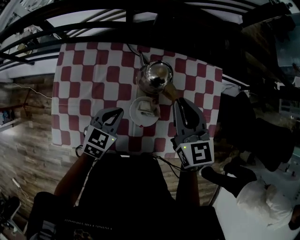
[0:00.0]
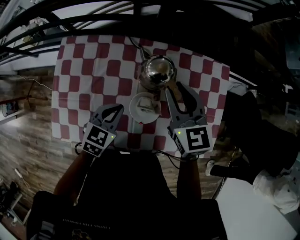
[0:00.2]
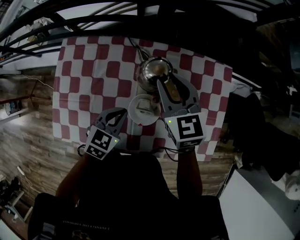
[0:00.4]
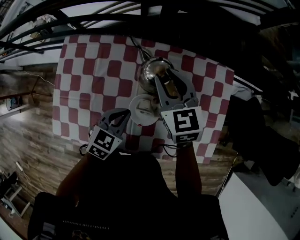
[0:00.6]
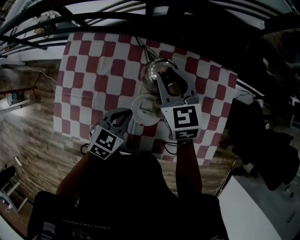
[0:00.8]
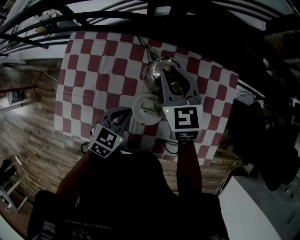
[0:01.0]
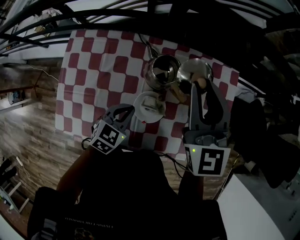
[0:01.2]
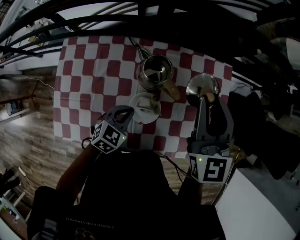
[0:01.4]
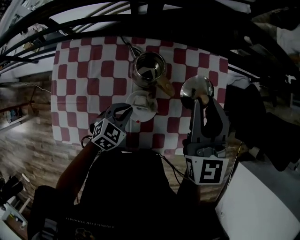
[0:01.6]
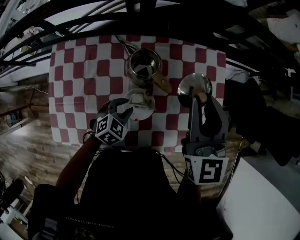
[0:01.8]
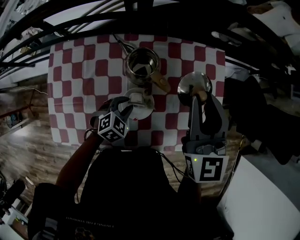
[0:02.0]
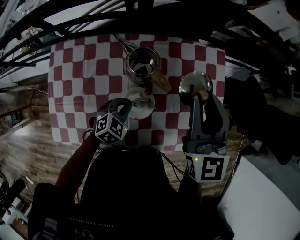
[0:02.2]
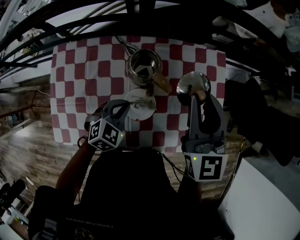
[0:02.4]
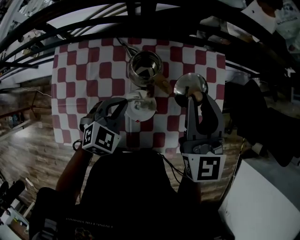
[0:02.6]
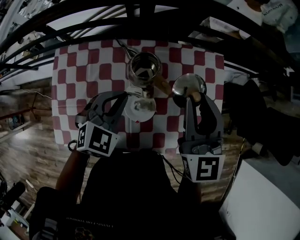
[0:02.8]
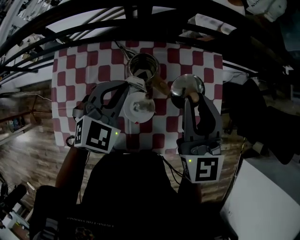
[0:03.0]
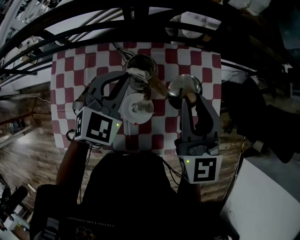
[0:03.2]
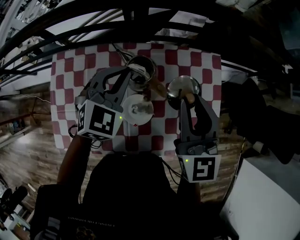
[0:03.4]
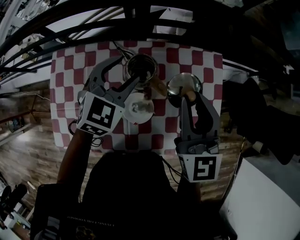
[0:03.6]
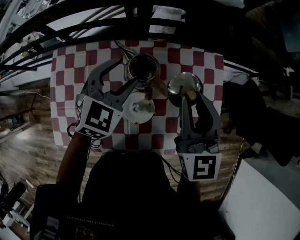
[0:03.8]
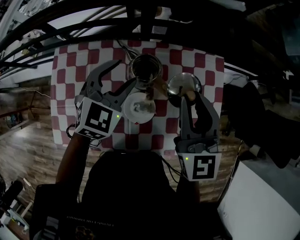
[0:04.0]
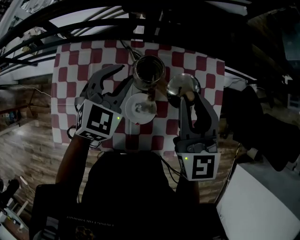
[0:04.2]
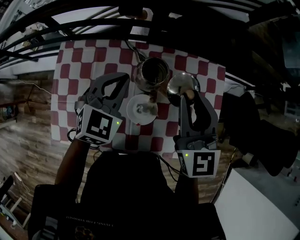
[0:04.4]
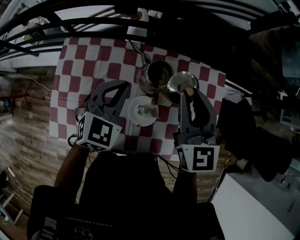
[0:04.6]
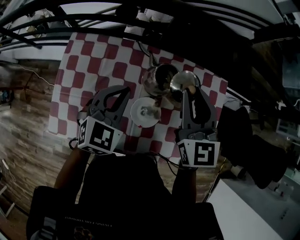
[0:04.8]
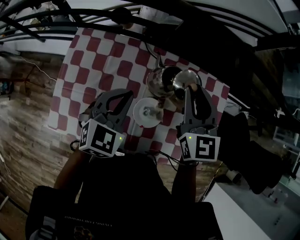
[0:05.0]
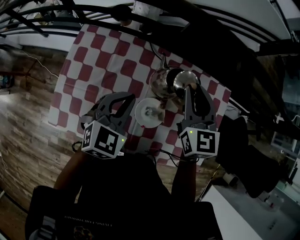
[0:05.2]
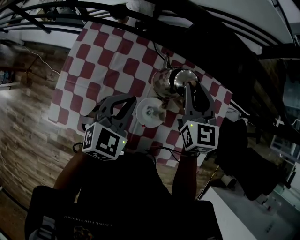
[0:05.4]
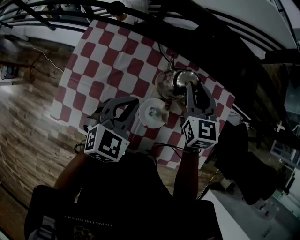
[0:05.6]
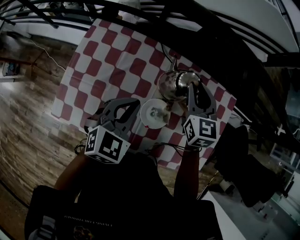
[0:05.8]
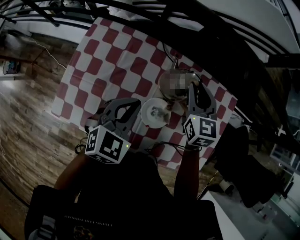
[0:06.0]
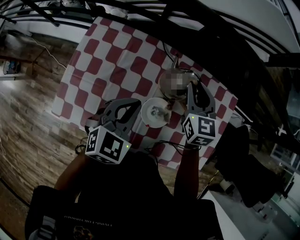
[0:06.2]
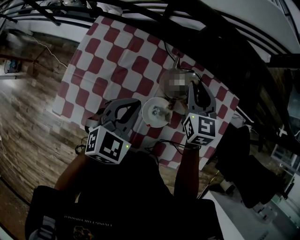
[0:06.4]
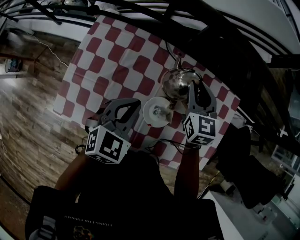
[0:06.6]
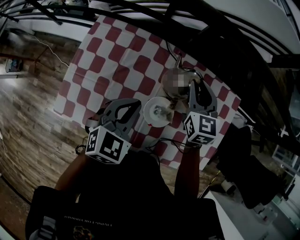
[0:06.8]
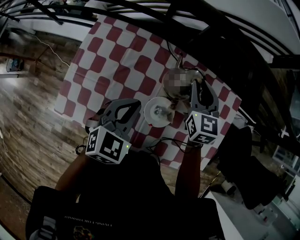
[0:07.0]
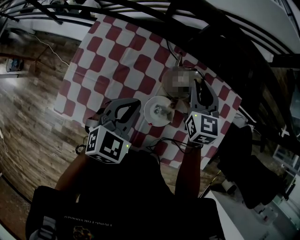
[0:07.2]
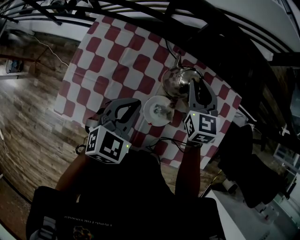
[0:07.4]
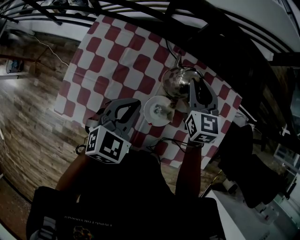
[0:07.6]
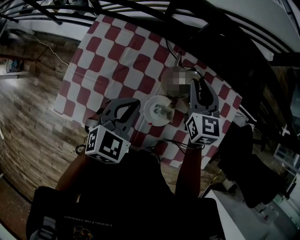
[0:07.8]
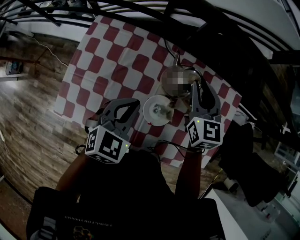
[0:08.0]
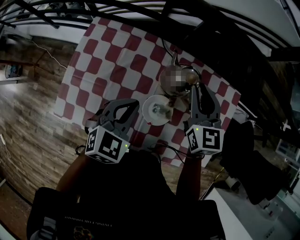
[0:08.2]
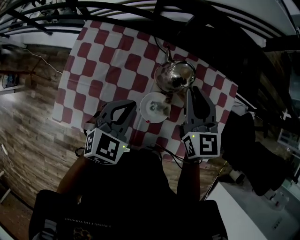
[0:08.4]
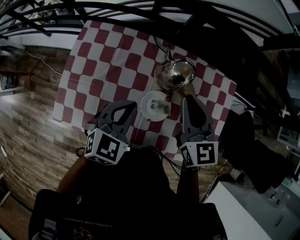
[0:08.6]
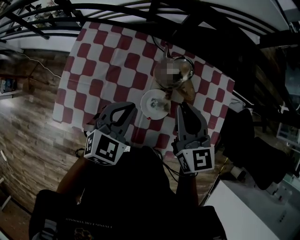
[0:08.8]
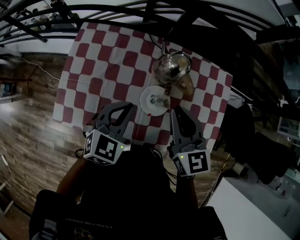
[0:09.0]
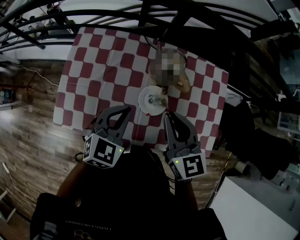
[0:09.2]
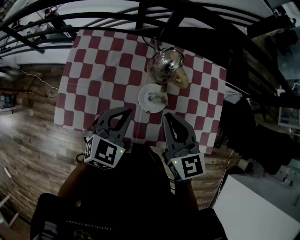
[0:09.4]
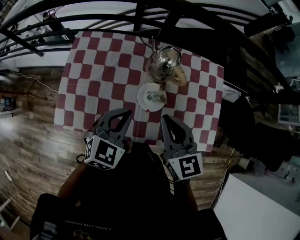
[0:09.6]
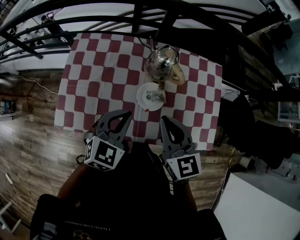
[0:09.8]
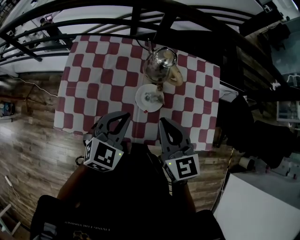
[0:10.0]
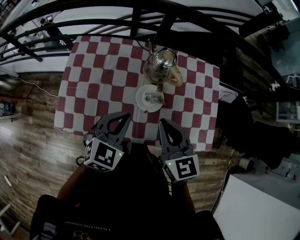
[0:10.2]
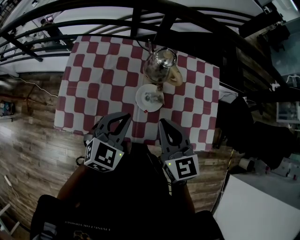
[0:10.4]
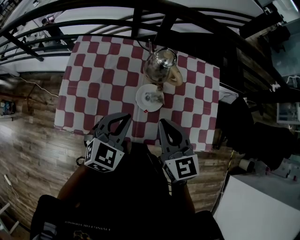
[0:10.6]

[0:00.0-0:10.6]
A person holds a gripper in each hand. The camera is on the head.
0:00.0 to 0:01.6: The right gripper shifts roughly 10 cm to the right and upward; the left gripper is displaced to the right and downward by about 10 cm, and turns by about 20 degrees.
0:01.6 to 0:03.0: The left gripper heads upward and forward, covering about 20 cm, rotates roughly 20 degrees, and opens, then closes once more.
0:03.0 to 0:04.6: Both grippers move to the left, approximately 5 cm. The left gripper opens, then closes once more.
0:04.6 to 0:06.0: The right gripper goes approximately 15 cm downward and forward; the left gripper is displaced backward by some 5 cm.
0:06.0 to 0:07.6: There are only small adjustments of the grippers.
0:07.6 to 0:09.0: The left gripper is displaced backward by about 5 cm; the right gripper shifts approximately 20 cm backward.
0:09.0 to 0:10.6: Both grippers travel together backward, about 10 cm.

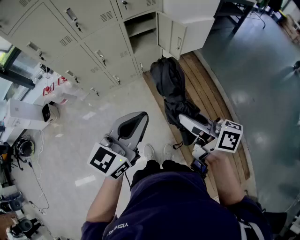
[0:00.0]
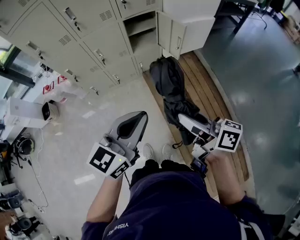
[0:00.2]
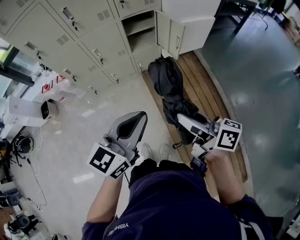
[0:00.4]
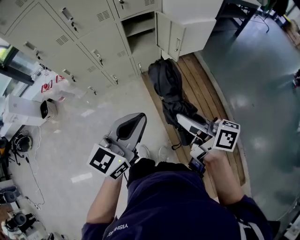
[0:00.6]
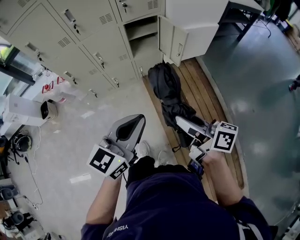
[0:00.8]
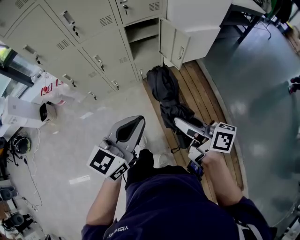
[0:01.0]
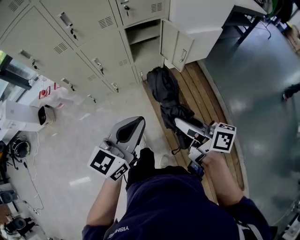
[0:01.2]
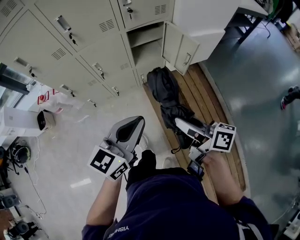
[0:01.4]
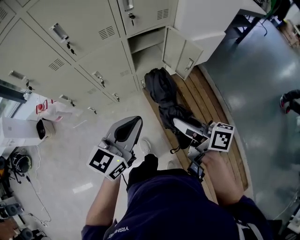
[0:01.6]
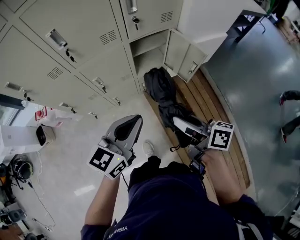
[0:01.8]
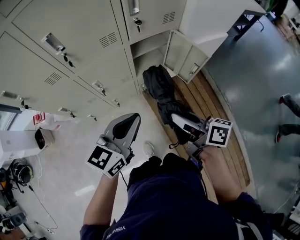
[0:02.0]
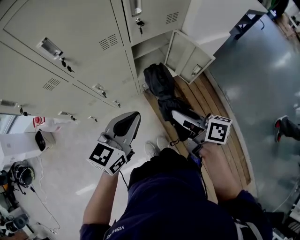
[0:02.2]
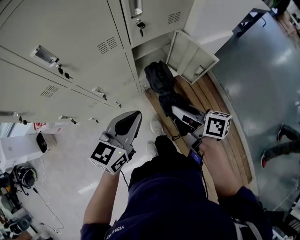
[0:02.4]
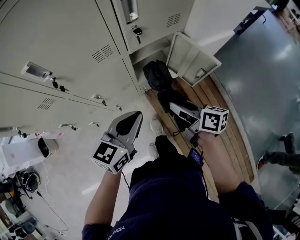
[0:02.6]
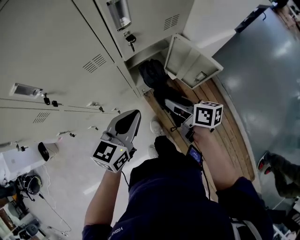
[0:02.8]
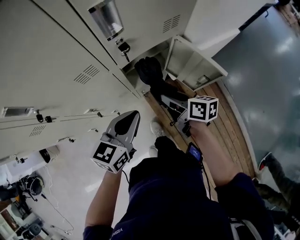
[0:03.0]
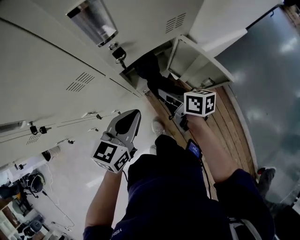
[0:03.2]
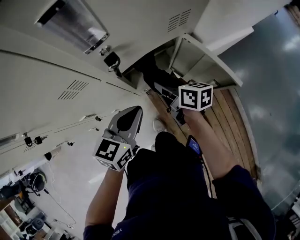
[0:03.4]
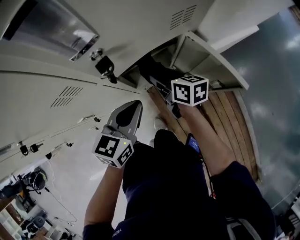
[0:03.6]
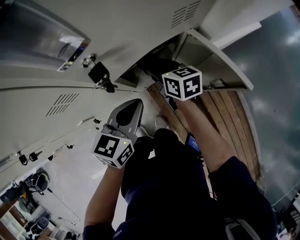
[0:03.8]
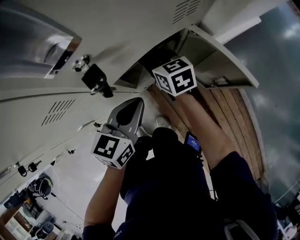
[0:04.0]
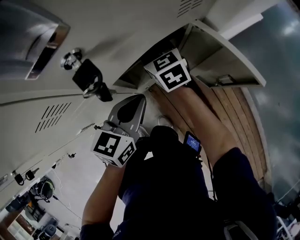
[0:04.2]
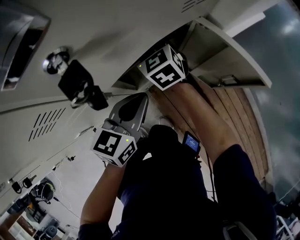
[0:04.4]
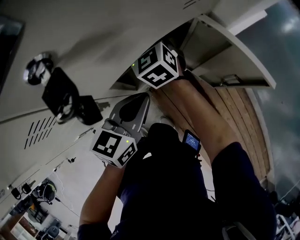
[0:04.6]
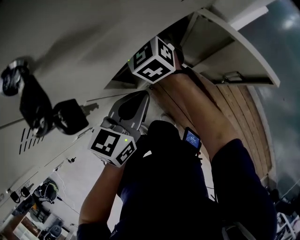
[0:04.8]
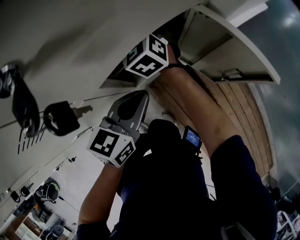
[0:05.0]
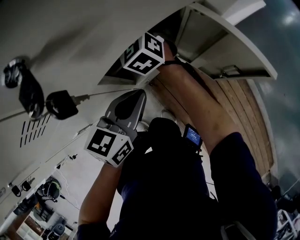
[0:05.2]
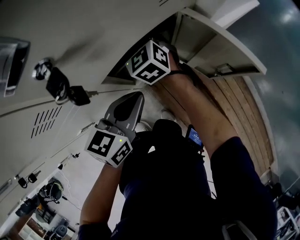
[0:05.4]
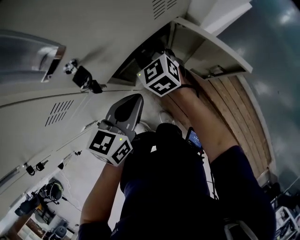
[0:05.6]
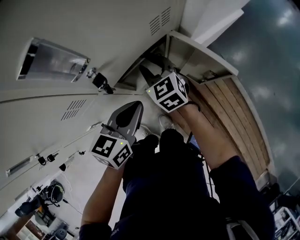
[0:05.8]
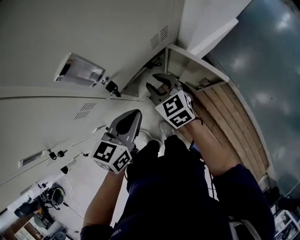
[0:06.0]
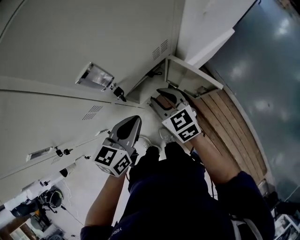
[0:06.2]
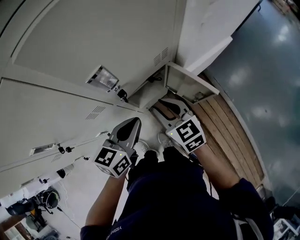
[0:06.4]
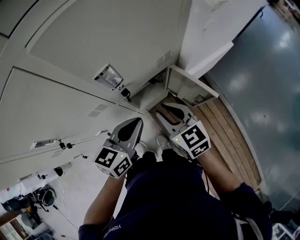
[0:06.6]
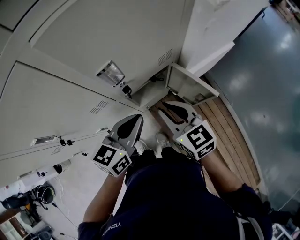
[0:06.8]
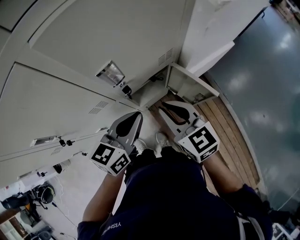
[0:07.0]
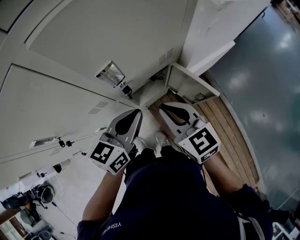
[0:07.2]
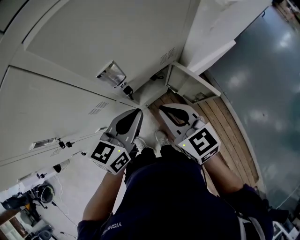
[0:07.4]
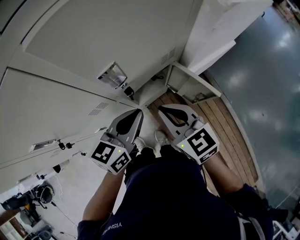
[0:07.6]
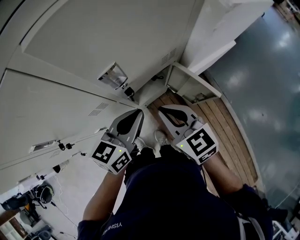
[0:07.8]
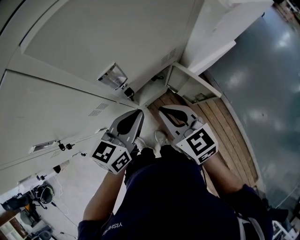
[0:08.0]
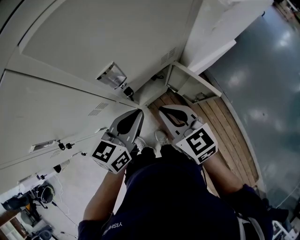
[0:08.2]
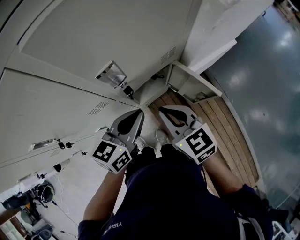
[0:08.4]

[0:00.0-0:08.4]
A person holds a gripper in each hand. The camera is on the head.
0:00.0 to 0:01.4: The two grippers go some 15 cm forward.
0:01.4 to 0:02.8: The right gripper is displaced forward and downward by some 35 cm. Meanwhile the left gripper shifts some 30 cm forward.
0:02.8 to 0:04.2: Both grippers travel together forward and downward, some 25 cm. The right gripper rolls counterclockwise, seen from behind, by about 50 degrees.
0:05.6 to 0:07.0: The right gripper goes approximately 30 cm upward and backward, and rotates about 20 degrees; the left gripper shifts some 20 cm upward.
0:07.0 to 0:08.4: There are only small adjustments of the grippers.

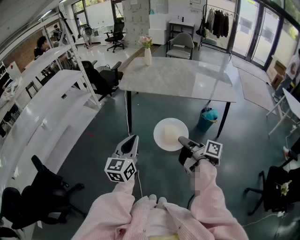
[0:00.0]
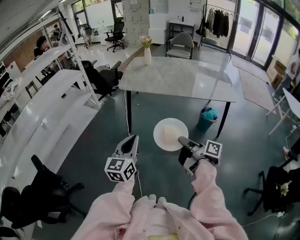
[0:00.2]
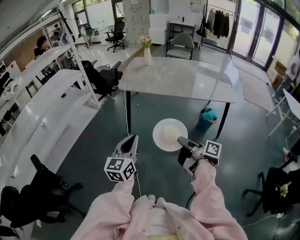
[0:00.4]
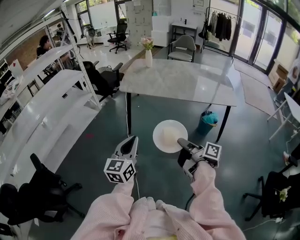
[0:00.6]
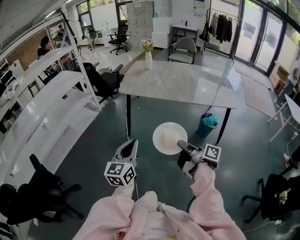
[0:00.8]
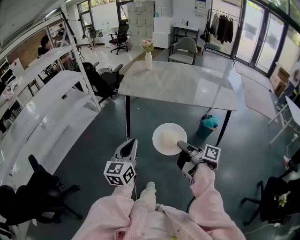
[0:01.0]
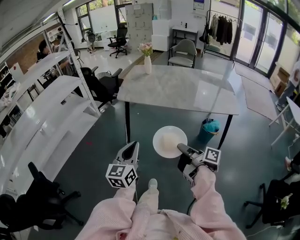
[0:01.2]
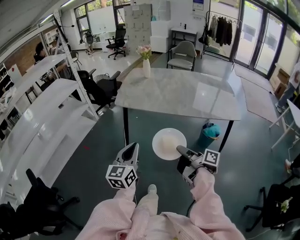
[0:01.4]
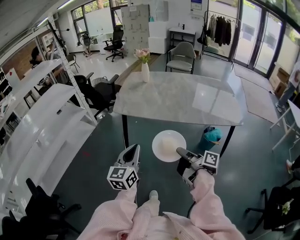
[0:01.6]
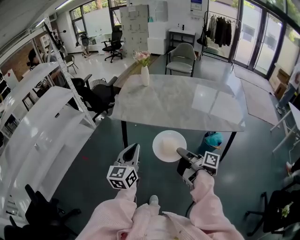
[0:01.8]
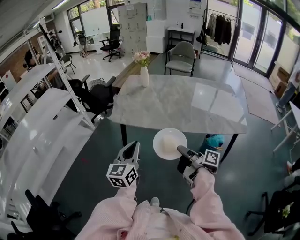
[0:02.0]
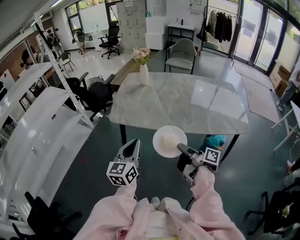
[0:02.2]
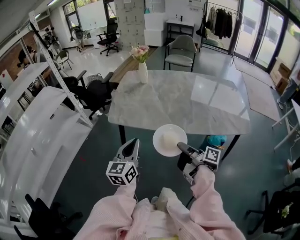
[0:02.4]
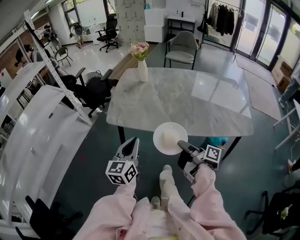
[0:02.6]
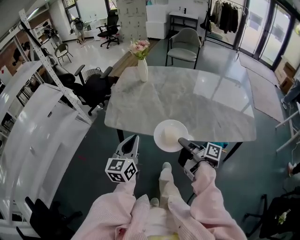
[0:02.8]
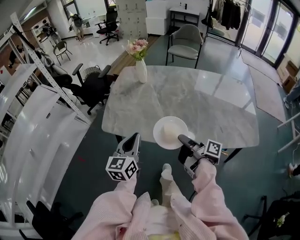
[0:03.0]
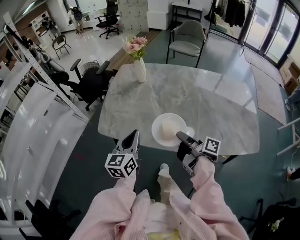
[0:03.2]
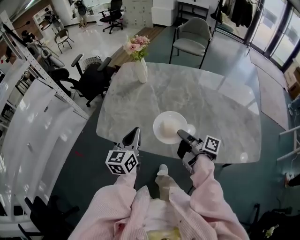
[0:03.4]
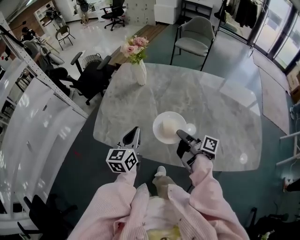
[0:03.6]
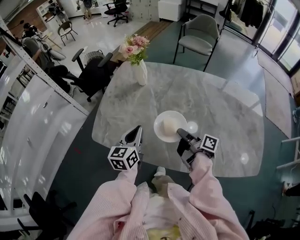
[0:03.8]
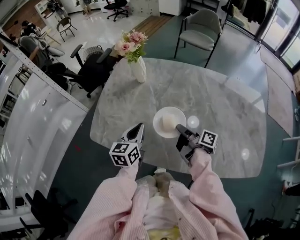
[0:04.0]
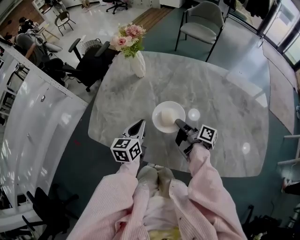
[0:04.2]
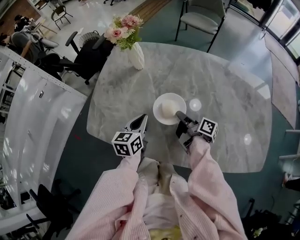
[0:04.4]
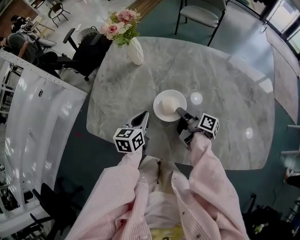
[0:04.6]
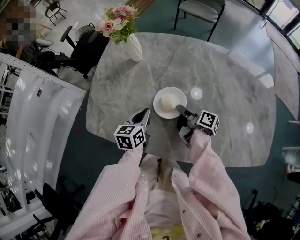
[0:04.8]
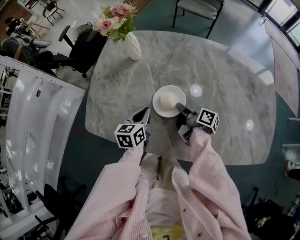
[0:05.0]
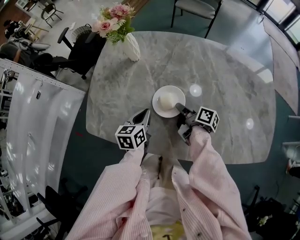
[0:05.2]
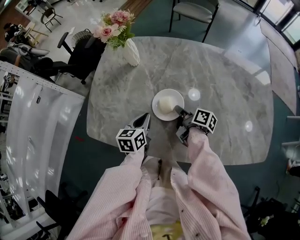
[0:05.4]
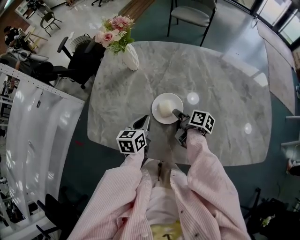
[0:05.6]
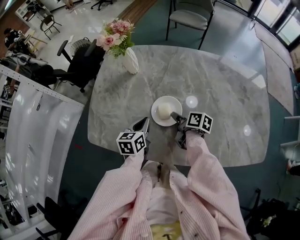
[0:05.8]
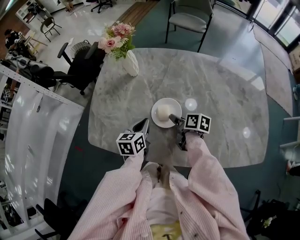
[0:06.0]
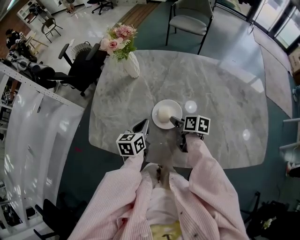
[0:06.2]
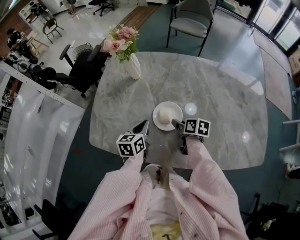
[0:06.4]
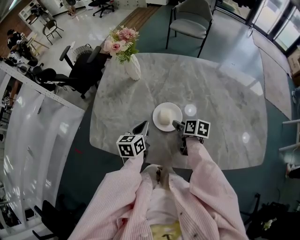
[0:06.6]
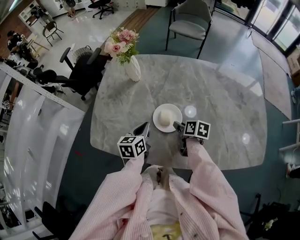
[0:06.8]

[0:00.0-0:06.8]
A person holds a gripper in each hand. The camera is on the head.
0:00.0 to 0:01.4: The left gripper changes place by some 15 cm.
0:01.4 to 0:02.8: The left gripper ends up roughly 35 cm from where it was.
0:02.8 to 0:04.0: The left gripper moves about 30 cm.
0:04.0 to 0:05.4: The left gripper goes about 10 cm downward.
